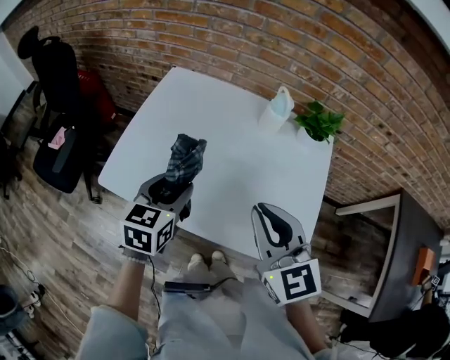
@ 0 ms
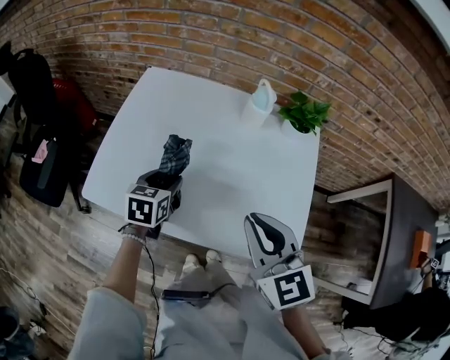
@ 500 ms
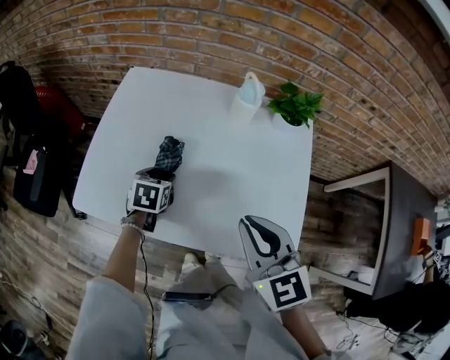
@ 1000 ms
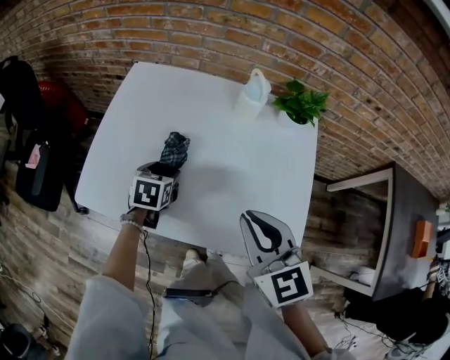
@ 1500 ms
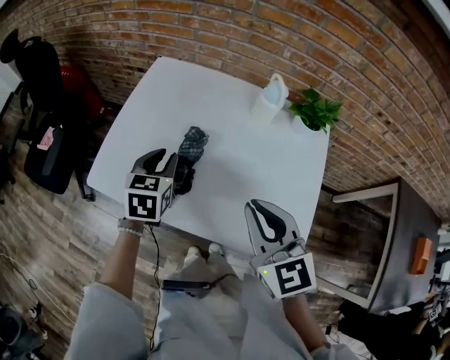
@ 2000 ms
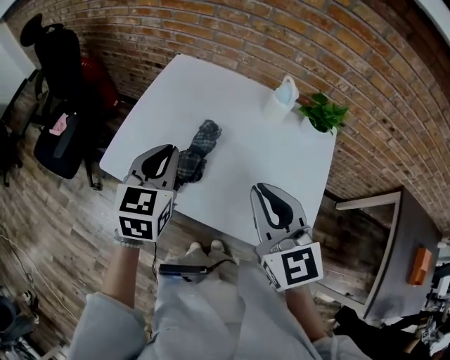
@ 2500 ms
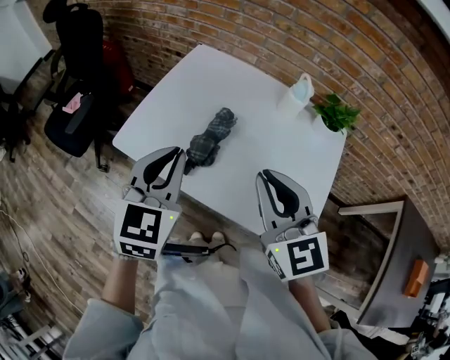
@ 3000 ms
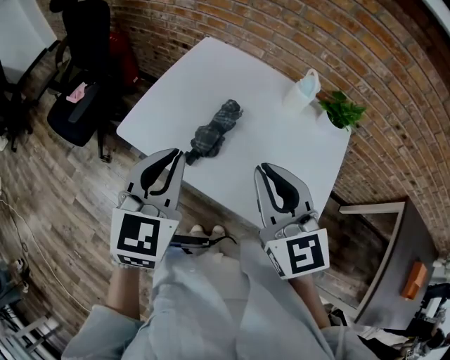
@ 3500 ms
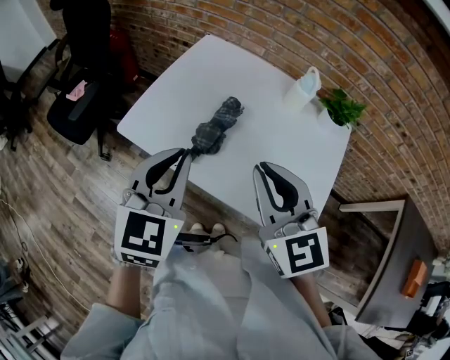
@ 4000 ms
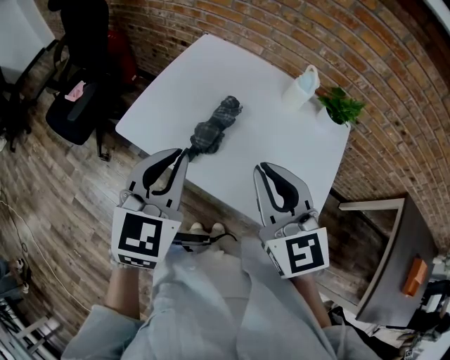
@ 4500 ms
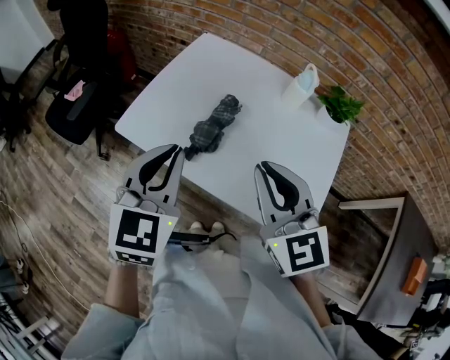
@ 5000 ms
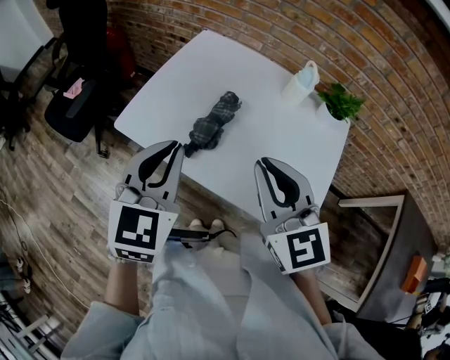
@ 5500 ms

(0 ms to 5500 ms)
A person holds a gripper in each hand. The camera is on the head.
0 ms - 2000 ms: The left gripper is displaced forward by some 10 cm, goes downward and returns, about 15 cm each way, and closes its fingers.
2000 ms - 3500 ms: The right gripper moves upward and to the left, approximately 10 cm; the left gripper is displaced backward and upward by roughly 25 cm, and changes its angle by about 20 degrees.
3500 ms - 5500 ms: The two grippers keep their place.

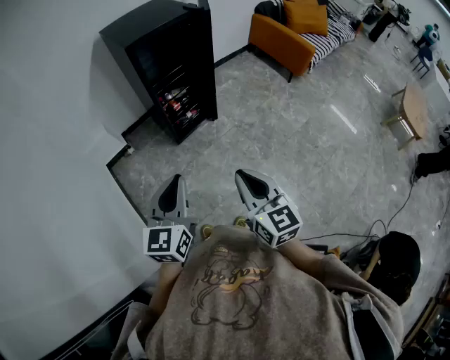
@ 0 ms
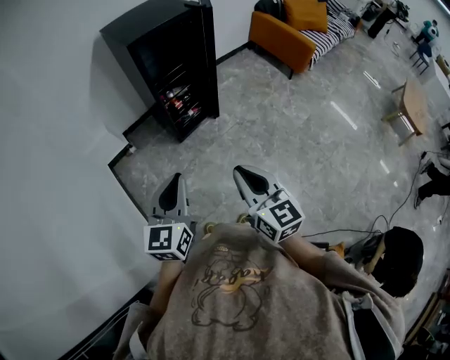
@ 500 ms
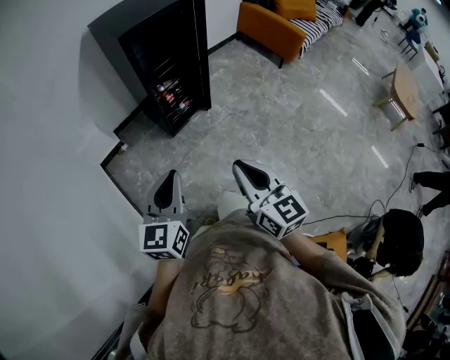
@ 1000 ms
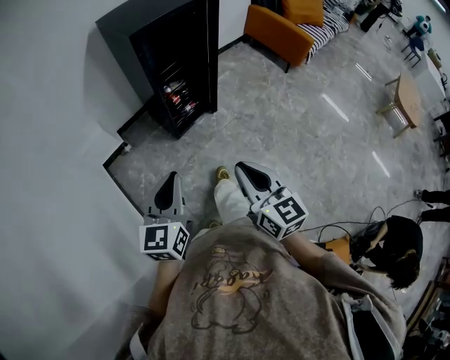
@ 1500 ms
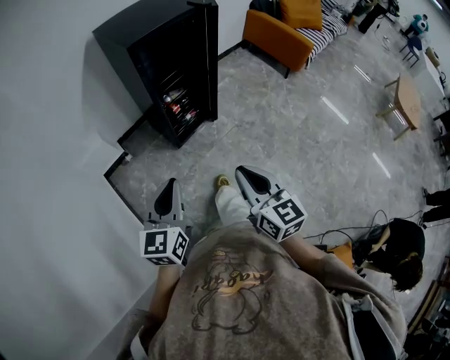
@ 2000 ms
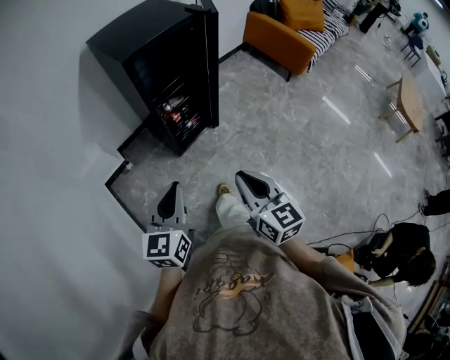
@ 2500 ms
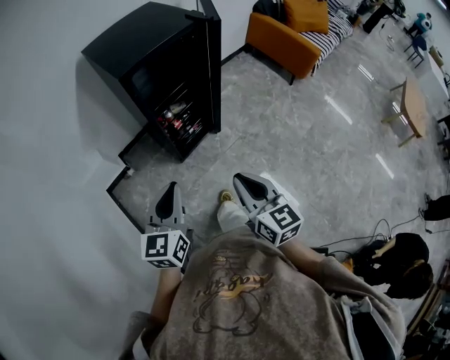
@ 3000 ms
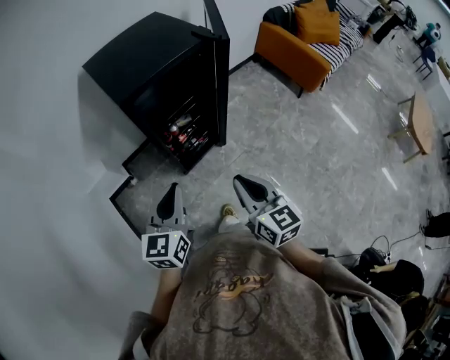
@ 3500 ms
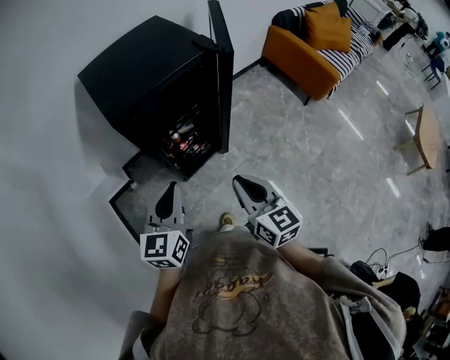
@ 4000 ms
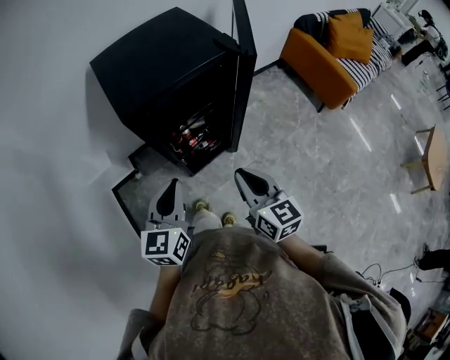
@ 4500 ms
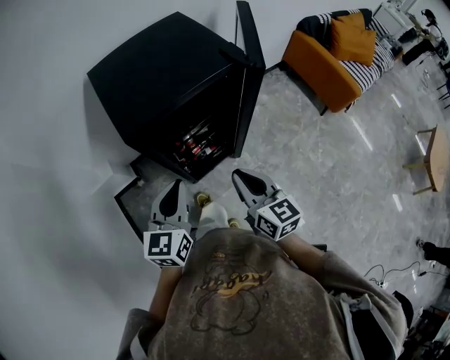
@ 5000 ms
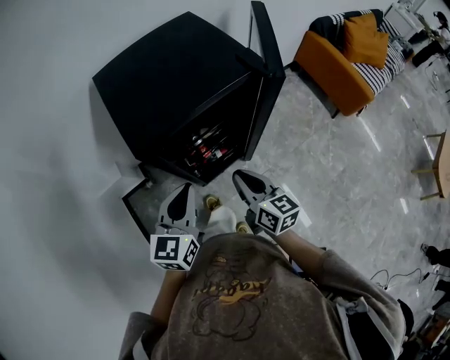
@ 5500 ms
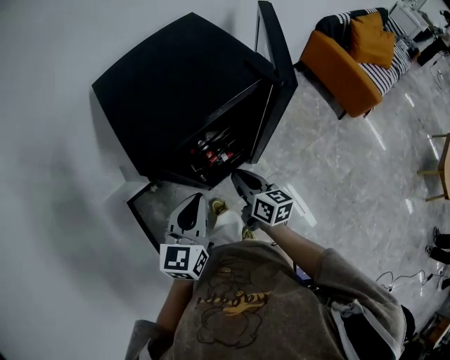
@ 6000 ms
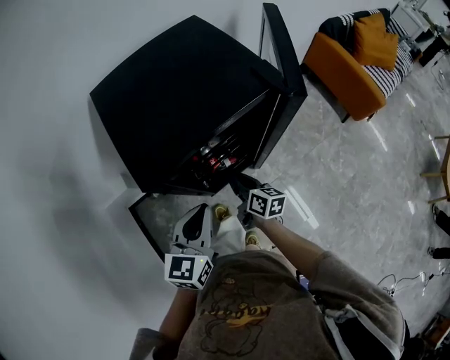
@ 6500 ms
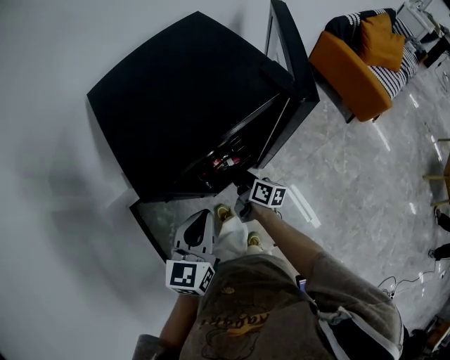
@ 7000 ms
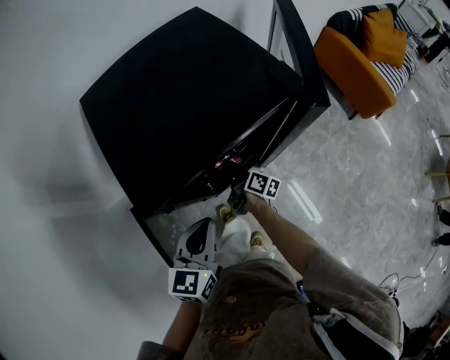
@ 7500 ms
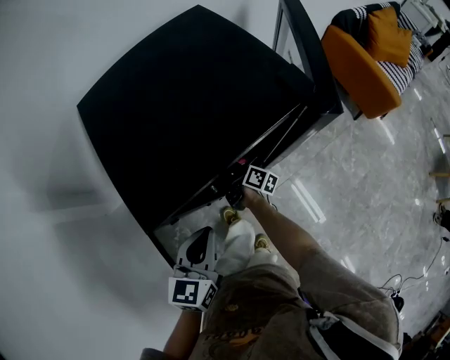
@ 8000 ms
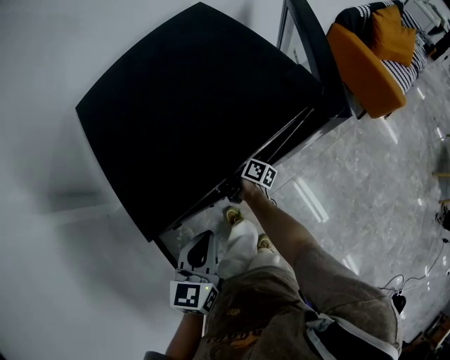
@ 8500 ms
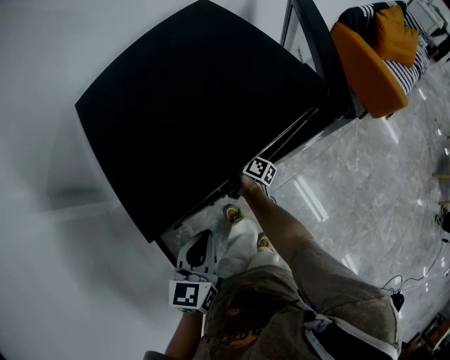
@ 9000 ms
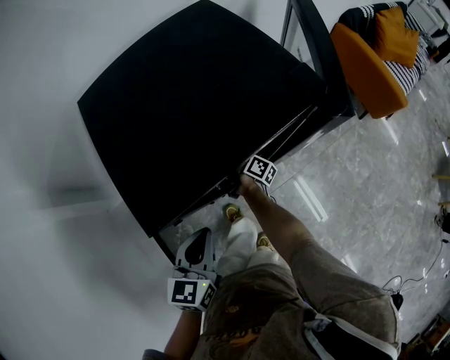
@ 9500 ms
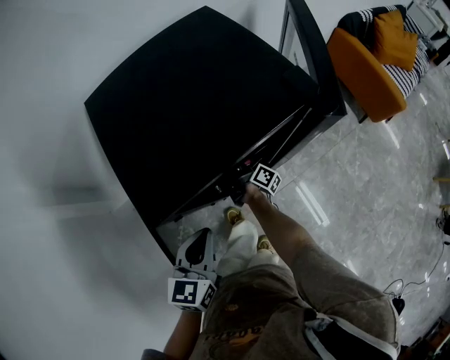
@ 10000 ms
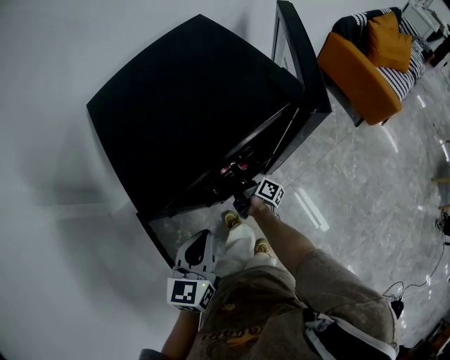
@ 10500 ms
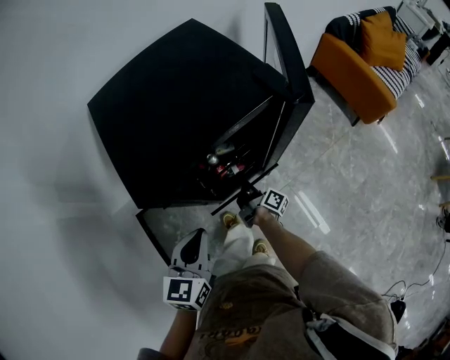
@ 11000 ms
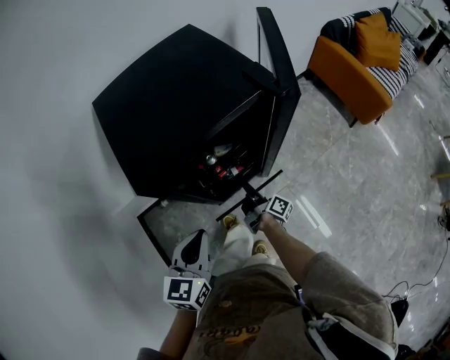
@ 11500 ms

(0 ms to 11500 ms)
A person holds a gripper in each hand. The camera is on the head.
0 ms - 2000 ms: The right gripper travels forward and to the left by about 10 cm; the left gripper is displaced to the left and forward by approximately 10 cm.
2000 ms - 4000 ms: The grippers both shift forward by roughly 30 cm.
4000 ms - 6000 ms: The right gripper shifts approximately 25 cm forward and downward, and swivels approximately 20 degrees; the left gripper shifts roughly 10 cm forward.
6000 ms - 7500 ms: The right gripper heads downward and forward, covering roughly 20 cm, swivels approximately 30 degrees, and opens its fingers. The left gripper shifts approximately 5 cm downward.
7500 ms - 9500 ms: The right gripper goes roughly 10 cm forward, and closes its fingers.
9500 ms - 11500 ms: The left gripper travels backward by some 5 cm. The right gripper heads backward and to the right, covering roughly 20 cm.

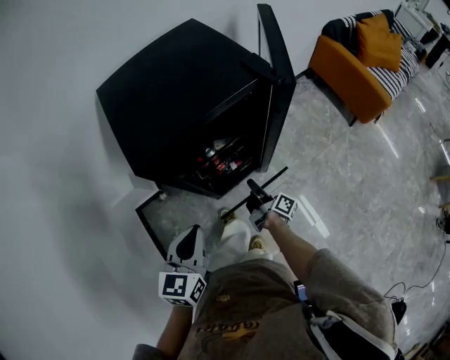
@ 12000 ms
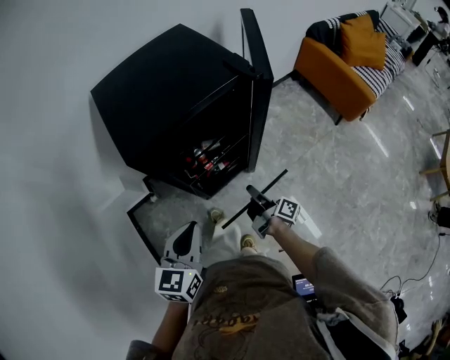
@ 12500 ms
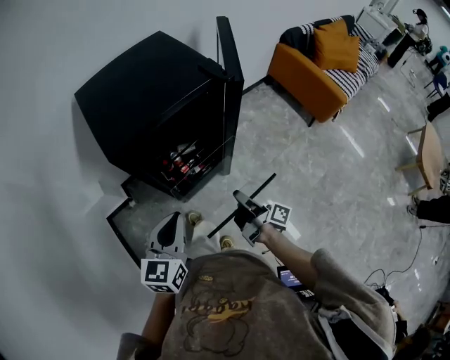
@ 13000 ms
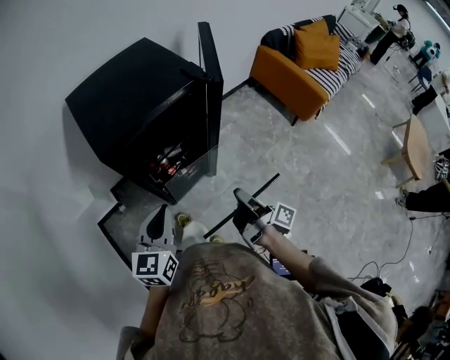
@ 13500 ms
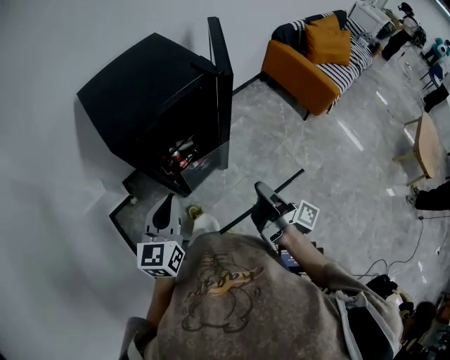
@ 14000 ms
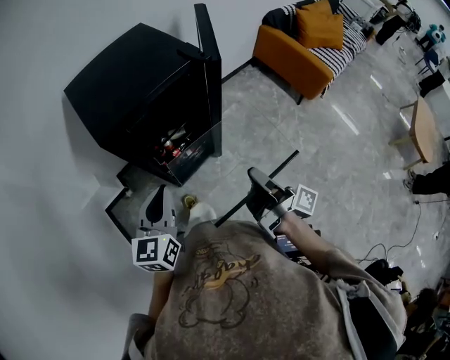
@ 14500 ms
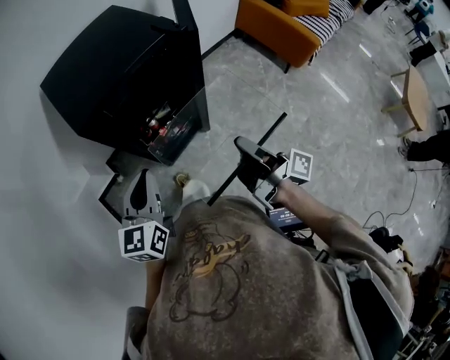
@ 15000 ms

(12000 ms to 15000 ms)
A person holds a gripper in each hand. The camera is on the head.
12000 ms - 13500 ms: The right gripper shifts some 25 cm upward, backward and to the right, while the left gripper moves upward, about 5 cm.
13500 ms - 15000 ms: The right gripper heads upward, covering approximately 5 cm.

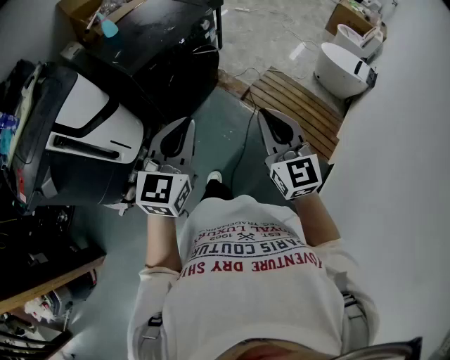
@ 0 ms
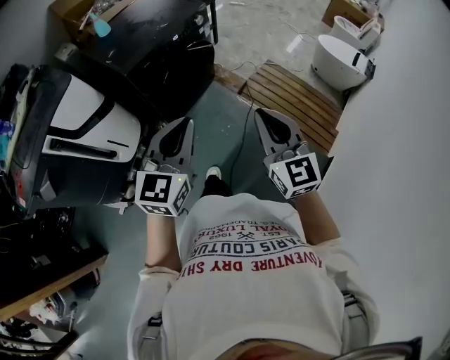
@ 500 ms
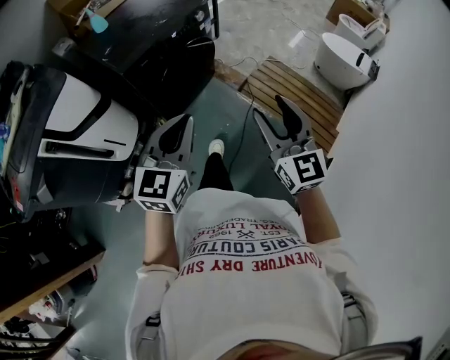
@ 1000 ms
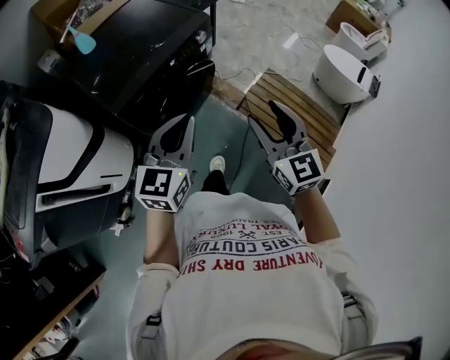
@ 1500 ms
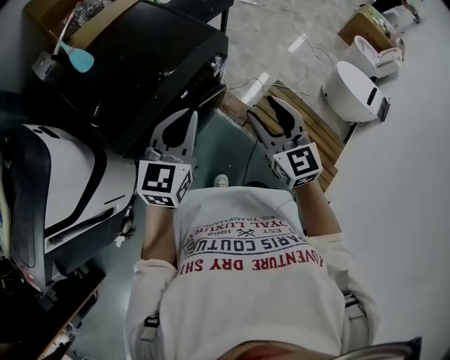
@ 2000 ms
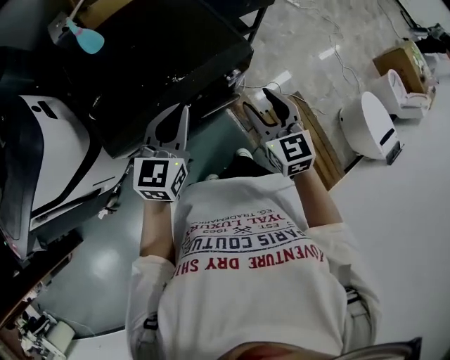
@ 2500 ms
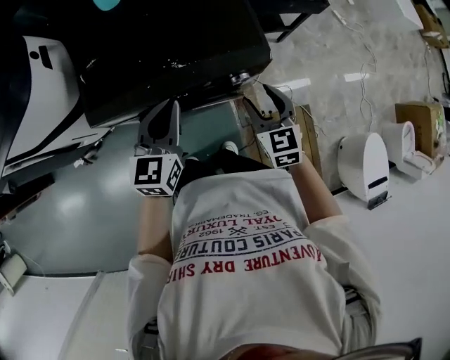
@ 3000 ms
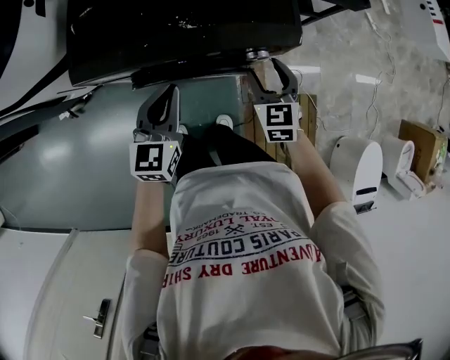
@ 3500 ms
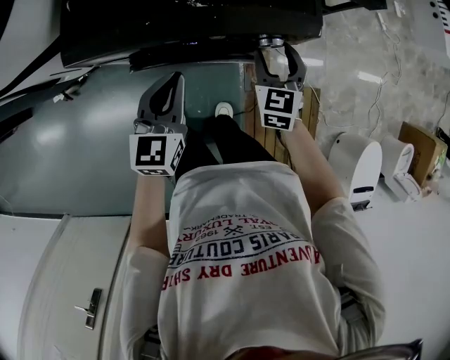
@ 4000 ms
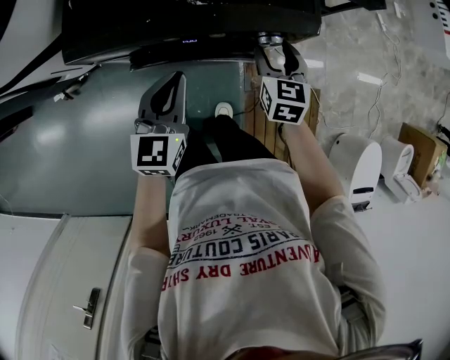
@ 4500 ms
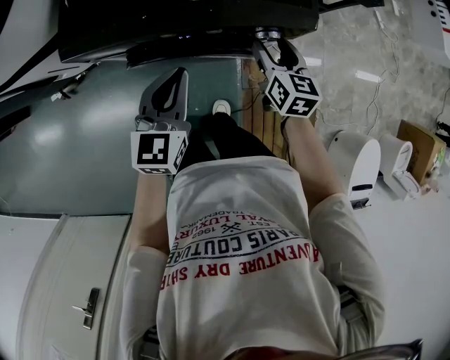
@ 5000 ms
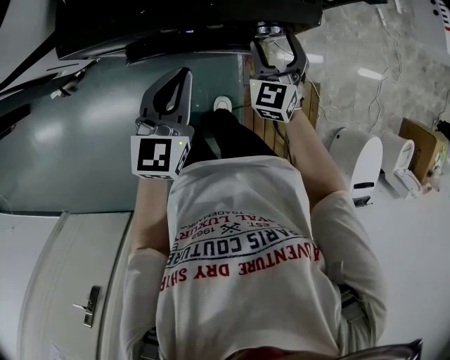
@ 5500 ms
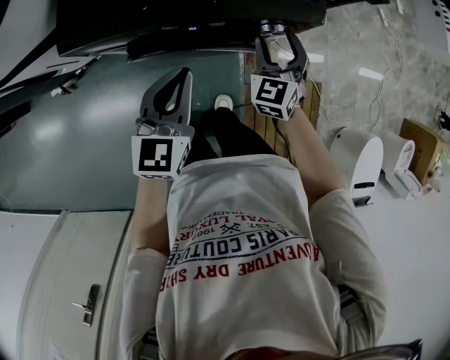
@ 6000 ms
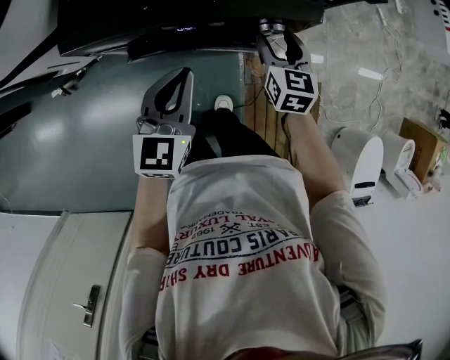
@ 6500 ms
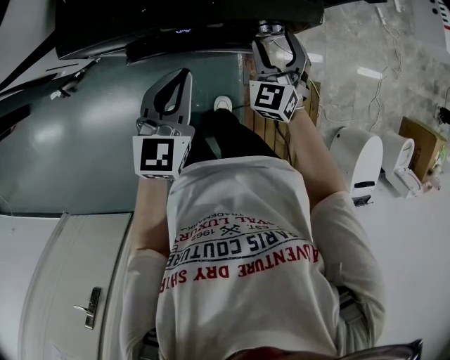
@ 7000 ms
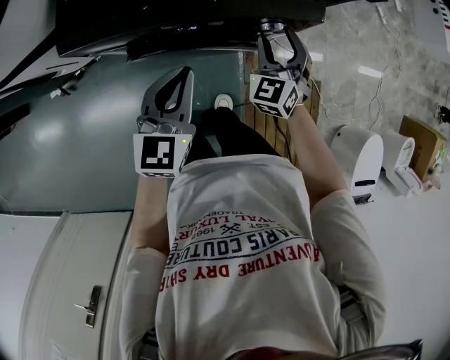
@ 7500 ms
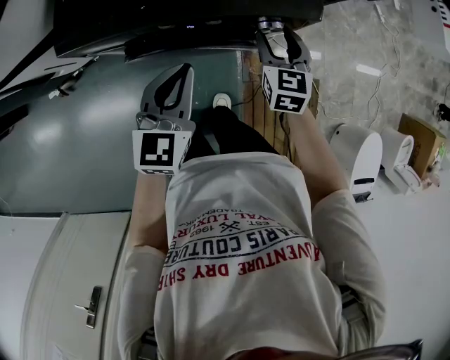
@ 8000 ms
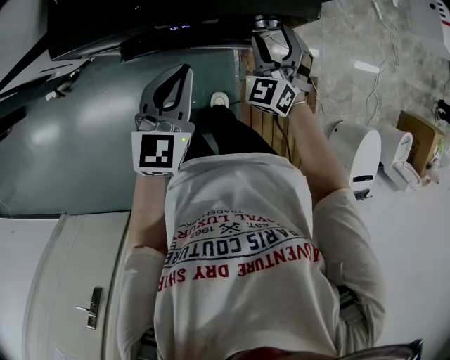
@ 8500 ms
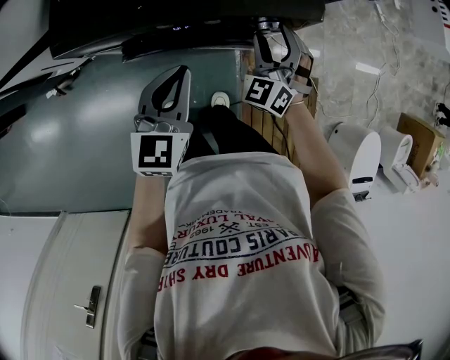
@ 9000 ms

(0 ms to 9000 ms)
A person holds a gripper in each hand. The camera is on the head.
0 ms - 2000 ms: Both grippers are carried forward, approximately 40 cm. The right gripper opens its fingers.
2000 ms - 4500 ms: The left gripper is displaced downward by roughly 20 cm, and swivels some 50 degrees, while the right gripper changes place by approximately 35 cm, and changes its angle by approximately 30 degrees.
4500 ms - 7000 ms: The right gripper swivels about 30 degrees.
